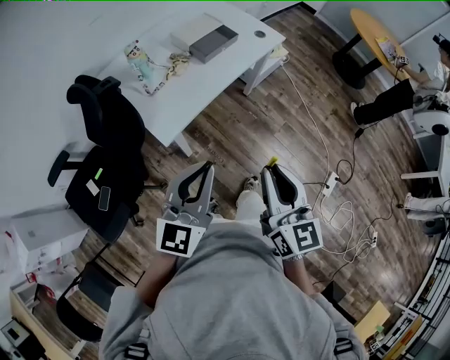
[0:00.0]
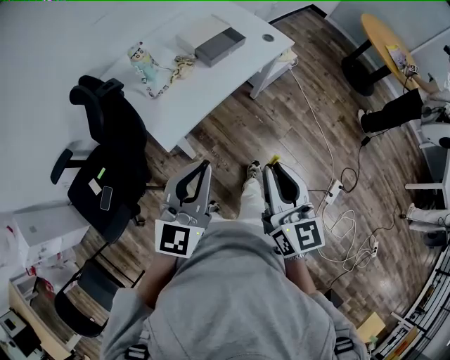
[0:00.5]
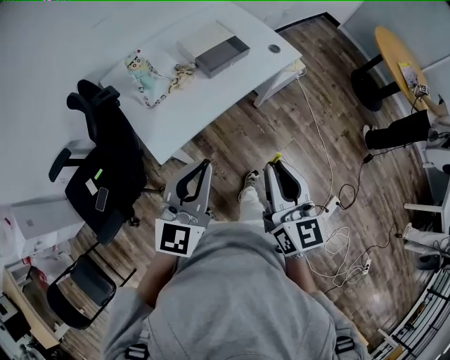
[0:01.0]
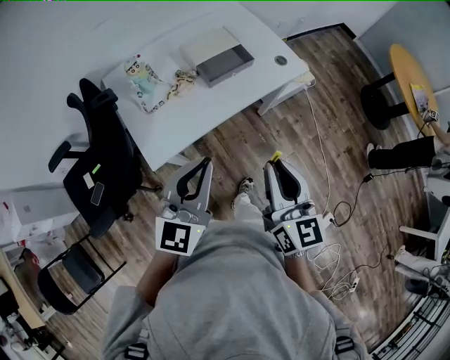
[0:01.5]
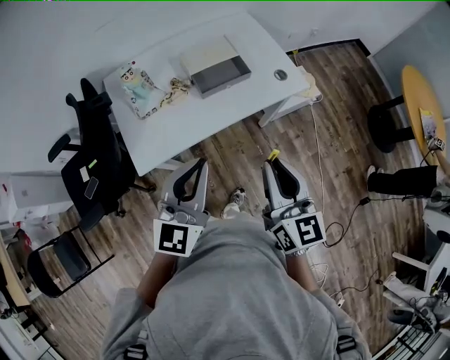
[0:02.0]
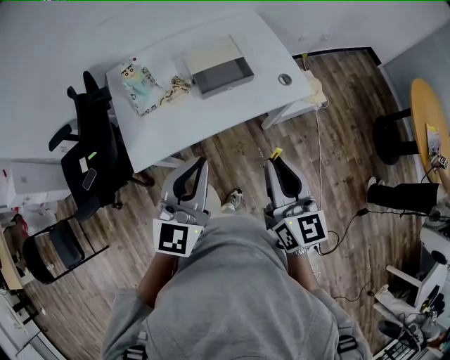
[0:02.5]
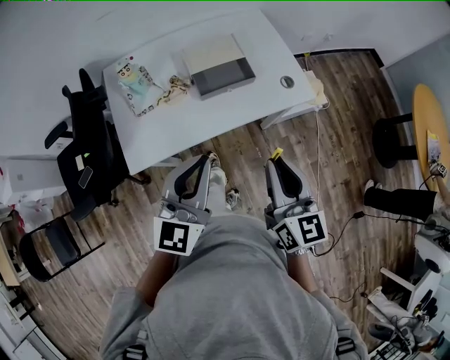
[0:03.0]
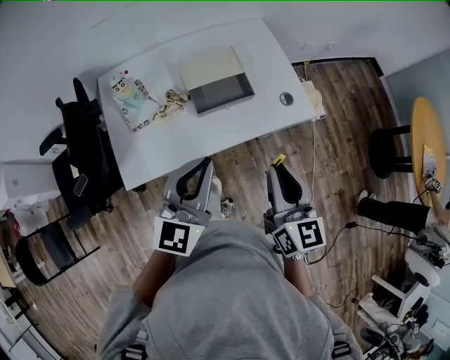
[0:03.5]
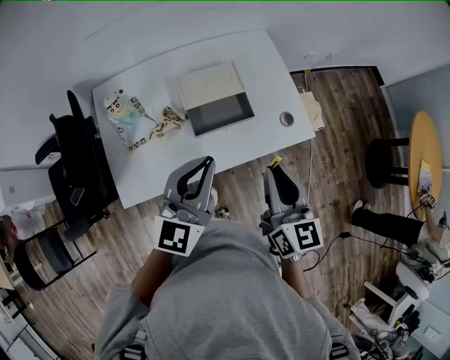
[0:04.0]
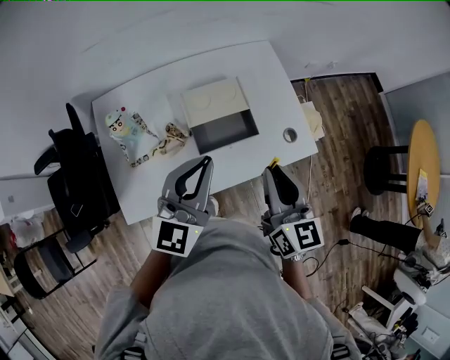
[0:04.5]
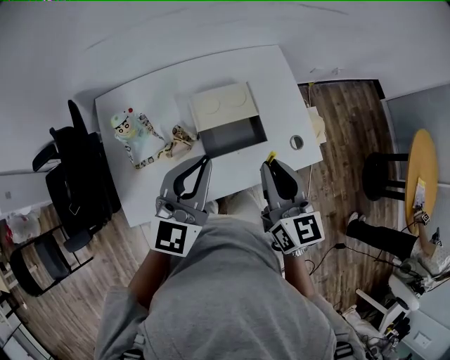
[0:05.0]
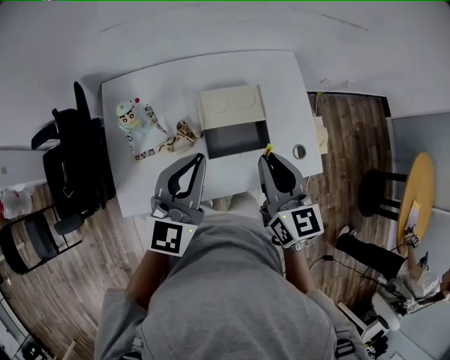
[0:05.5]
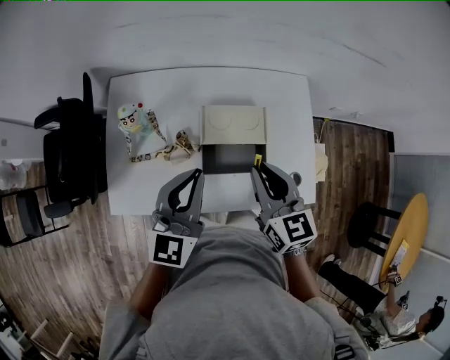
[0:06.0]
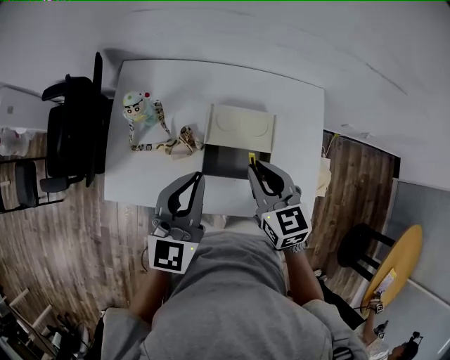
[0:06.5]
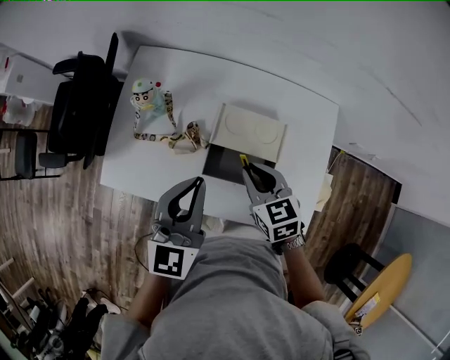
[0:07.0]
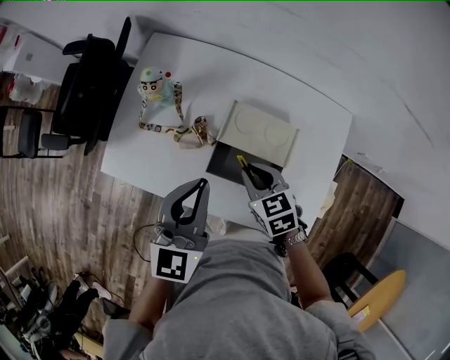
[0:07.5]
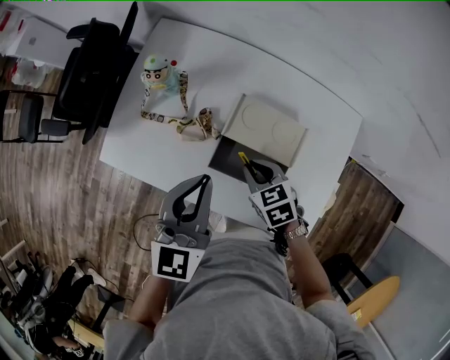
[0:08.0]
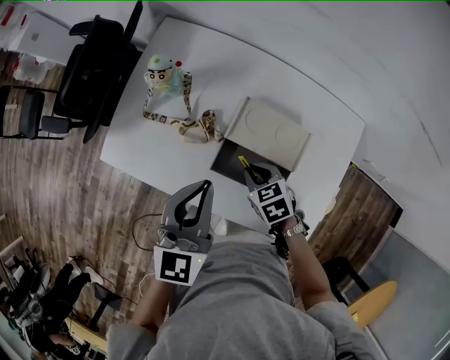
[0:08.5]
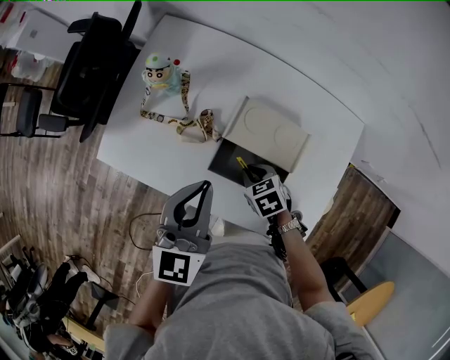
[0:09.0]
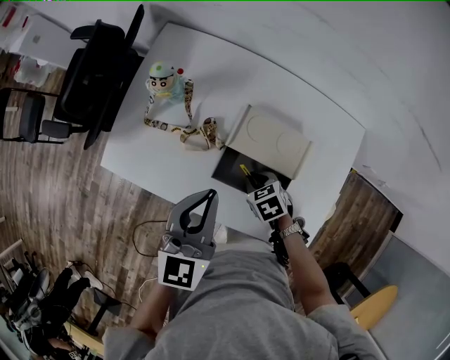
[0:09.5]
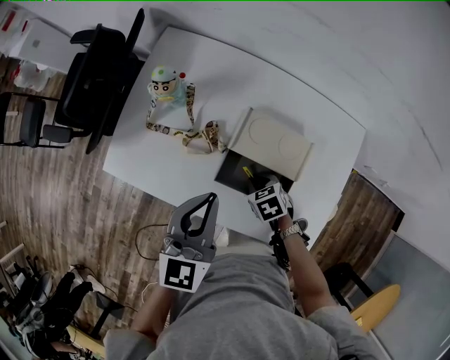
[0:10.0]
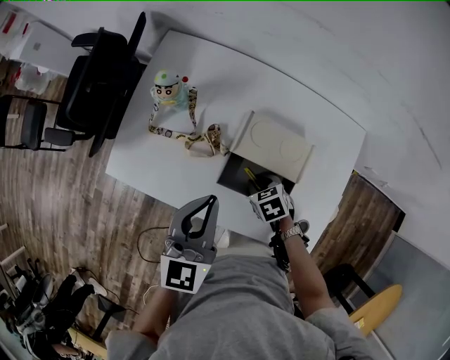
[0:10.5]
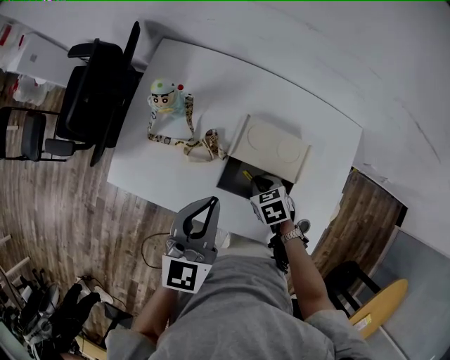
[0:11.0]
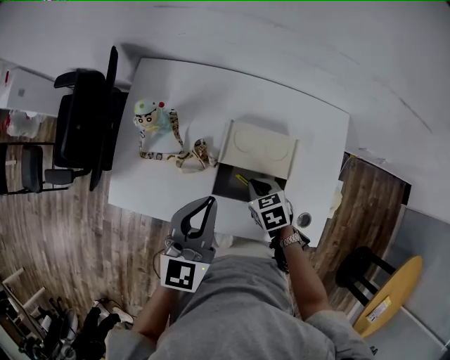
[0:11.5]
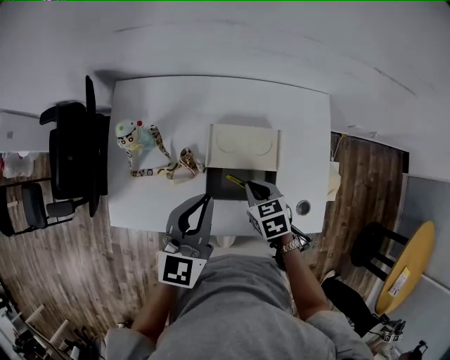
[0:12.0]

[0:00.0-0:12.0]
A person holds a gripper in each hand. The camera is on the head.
0:00.0 to 0:02.0: Both grippers move forward and to the right, about 30 cm. The right gripper rotates roughly 20 degrees. Meanwhile the left gripper swivels roughly 20 degrees.
0:02.0 to 0:04.0: The two grippers go roughly 20 cm forward.
0:04.0 to 0:06.0: Both grippers travel together forward and to the left, approximately 15 cm. The left gripper rotates approximately 20 degrees. Meanwhile the right gripper rotates roughly 30 degrees.
0:06.0 to 0:08.0: The right gripper is displaced downward by roughly 20 cm, and tilts its fingers approximately 30 degrees downward, while the left gripper changes its angle by about 30 degrees.
0:08.0 to 0:10.0: The right gripper travels downward by roughly 10 cm.
0:10.0 to 0:12.0: The right gripper shifts roughly 10 cm upward, and turns by approximately 30 degrees.

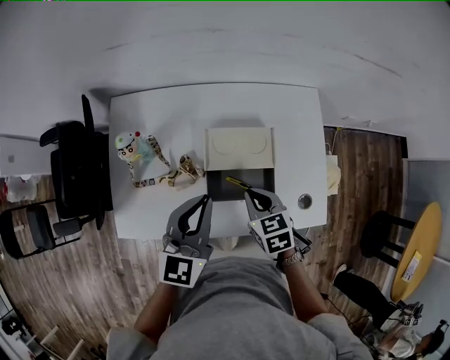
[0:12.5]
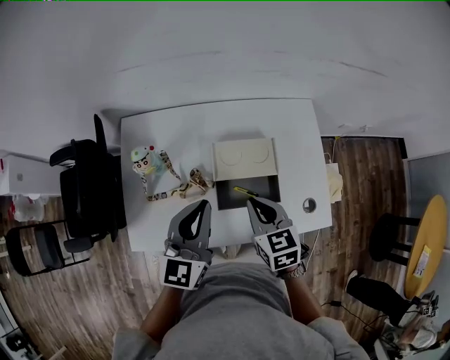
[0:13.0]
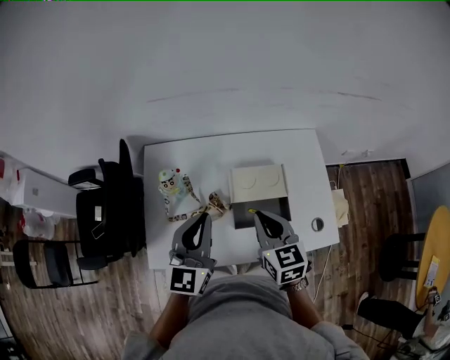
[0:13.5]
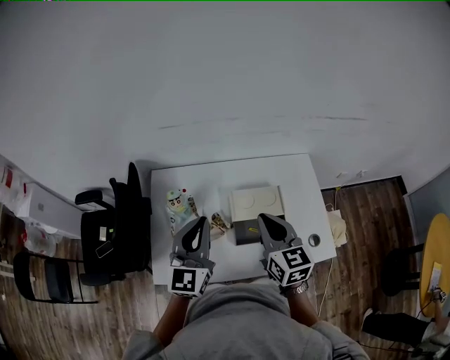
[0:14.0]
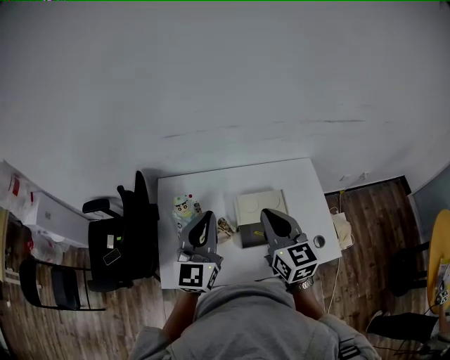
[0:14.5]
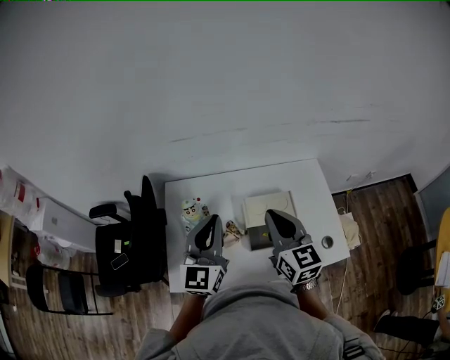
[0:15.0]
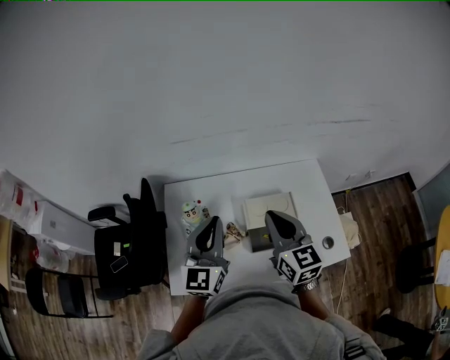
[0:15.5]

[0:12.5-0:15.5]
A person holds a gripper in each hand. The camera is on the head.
0:12.5 to 0:14.0: The right gripper moves upward, some 20 cm, and points its fingers about 30 degrees further upward; the left gripper travels upward and to the left by some 15 cm.
0:14.0 to 0:15.5: The grippers move only a little.

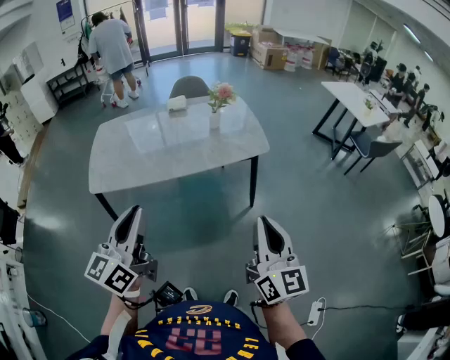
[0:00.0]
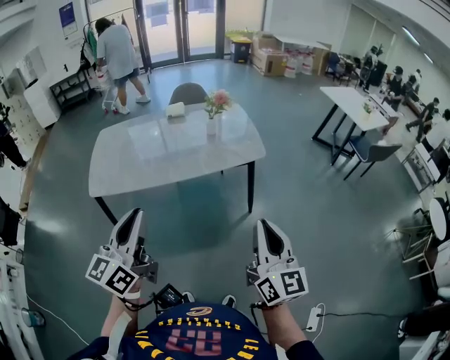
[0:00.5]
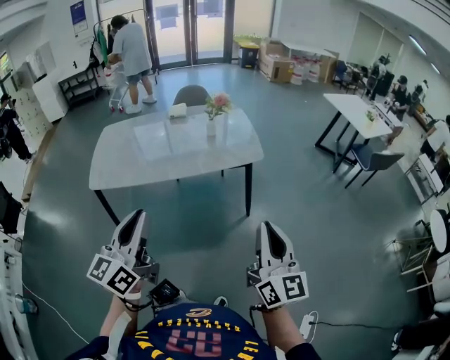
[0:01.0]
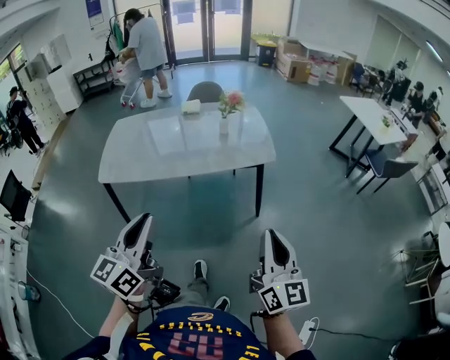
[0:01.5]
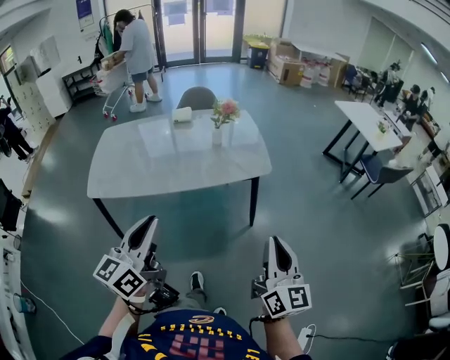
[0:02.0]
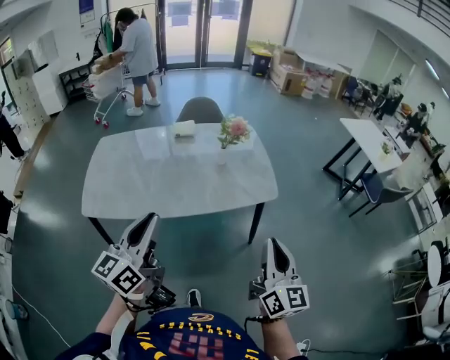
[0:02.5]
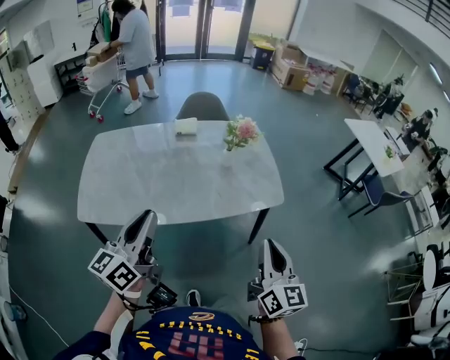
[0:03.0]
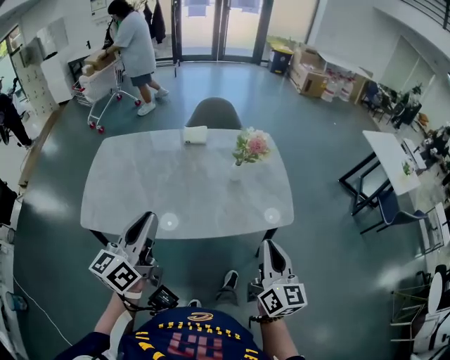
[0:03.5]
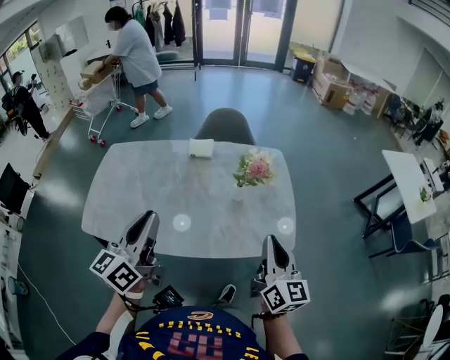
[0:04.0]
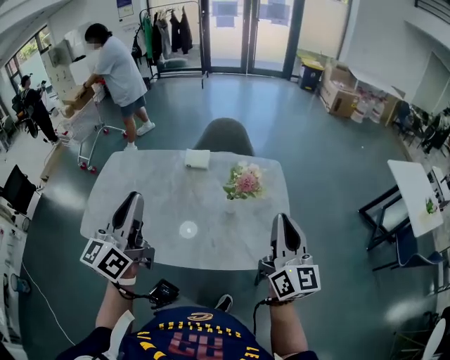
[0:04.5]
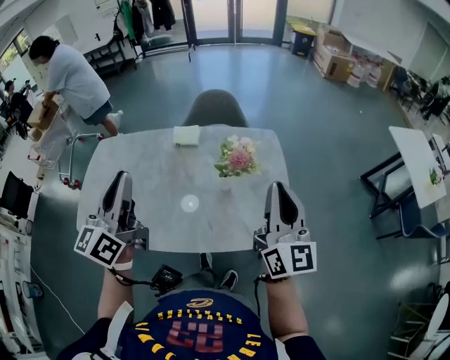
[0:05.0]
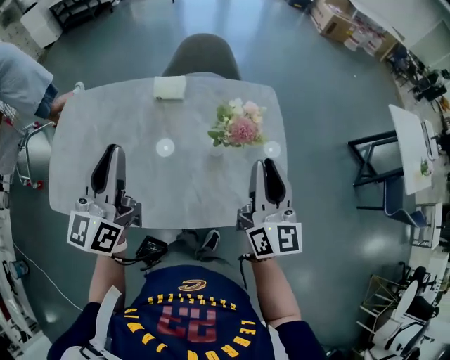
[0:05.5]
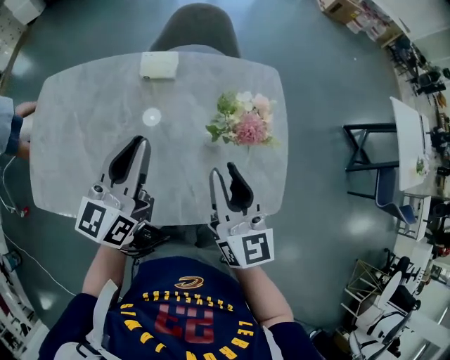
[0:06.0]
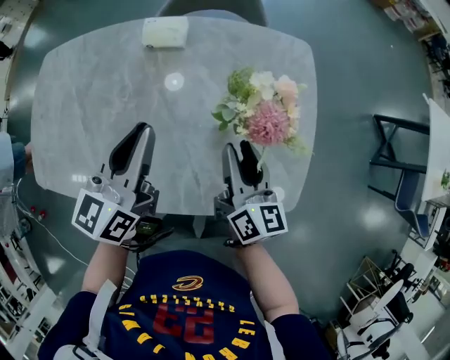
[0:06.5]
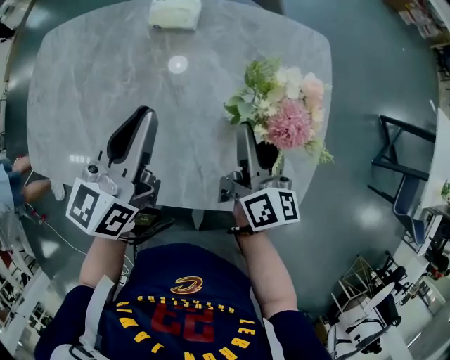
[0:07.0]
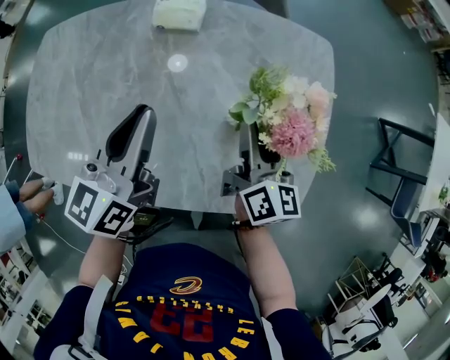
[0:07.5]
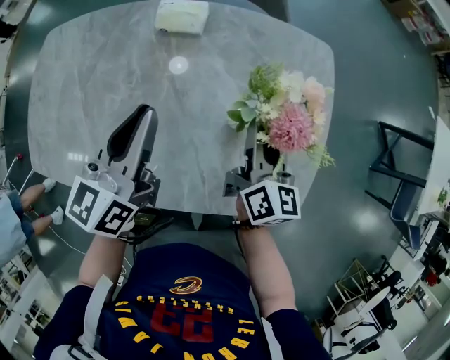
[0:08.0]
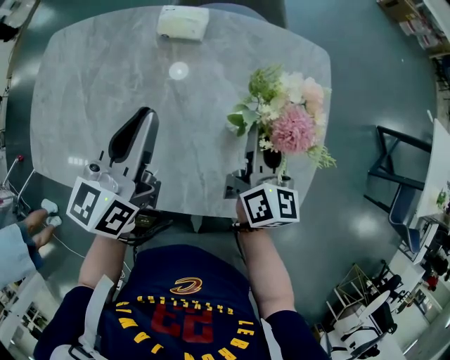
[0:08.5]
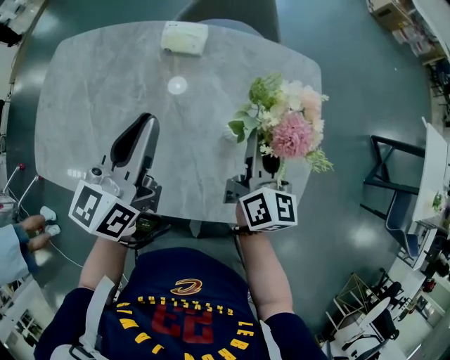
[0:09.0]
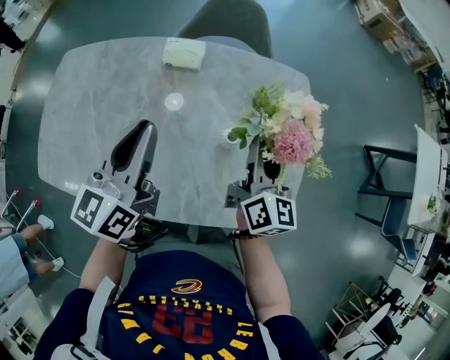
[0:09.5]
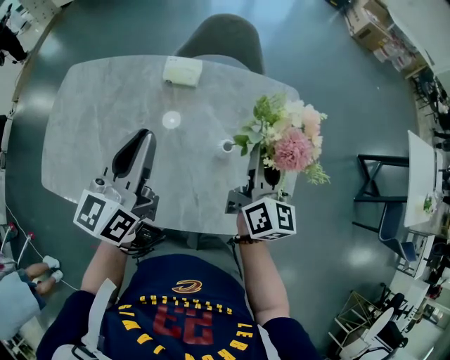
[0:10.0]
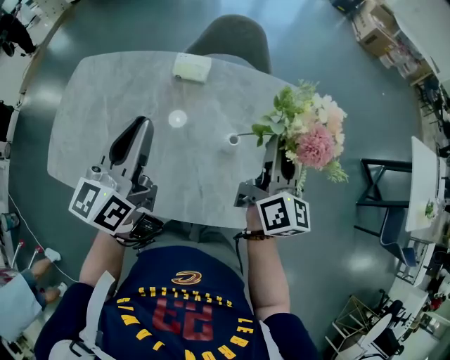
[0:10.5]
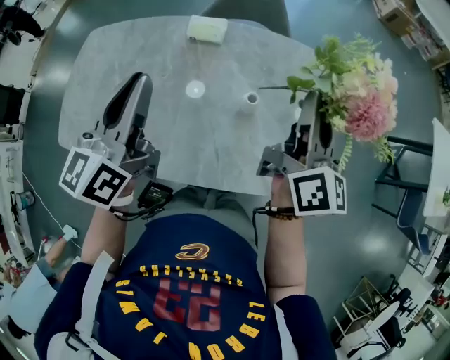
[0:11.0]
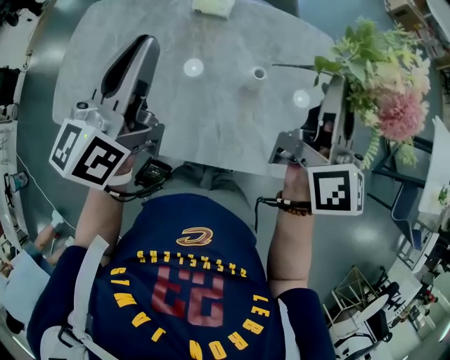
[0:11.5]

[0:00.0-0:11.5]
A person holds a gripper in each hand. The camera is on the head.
0:00.0 to 0:02.0: The grippers both shift to the right and forward by roughly 10 cm.
0:02.0 to 0:04.0: The two grippers go approximately 40 cm forward.
0:04.0 to 0:06.0: The left gripper is displaced forward and downward by about 25 cm; the right gripper heads forward and to the left, covering approximately 20 cm, and opens its fingers.
0:06.0 to 0:07.5: The left gripper shifts approximately 5 cm downward. The right gripper shifts about 15 cm downward and forward, rotates some 30 degrees, and opens.
0:07.5 to 0:09.5: The right gripper moves roughly 5 cm, and closes up.
0:09.5 to 0:11.5: The right gripper travels upward by some 10 cm.
